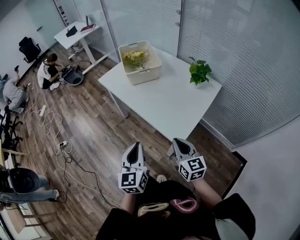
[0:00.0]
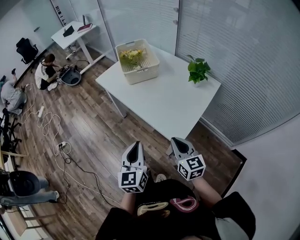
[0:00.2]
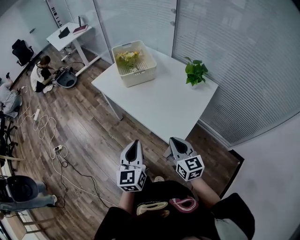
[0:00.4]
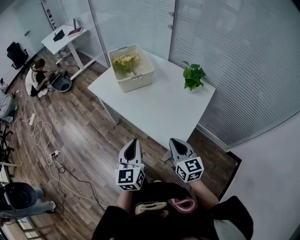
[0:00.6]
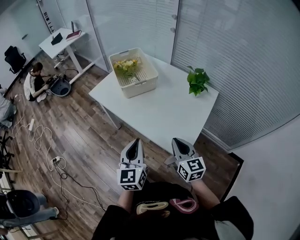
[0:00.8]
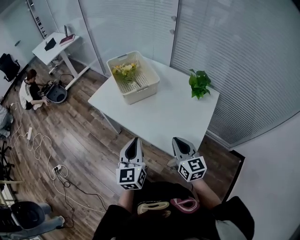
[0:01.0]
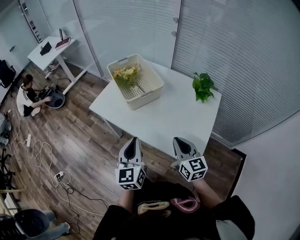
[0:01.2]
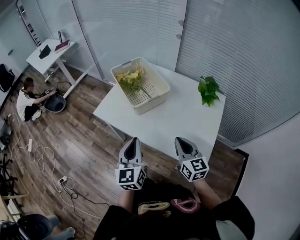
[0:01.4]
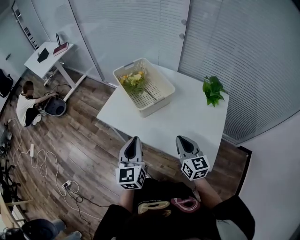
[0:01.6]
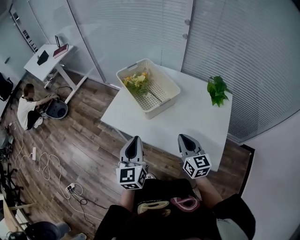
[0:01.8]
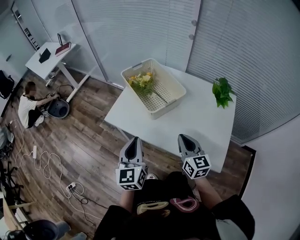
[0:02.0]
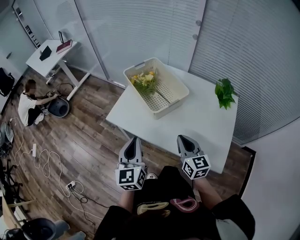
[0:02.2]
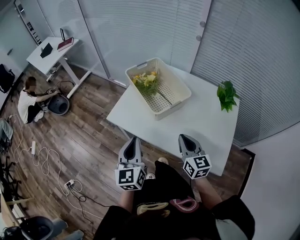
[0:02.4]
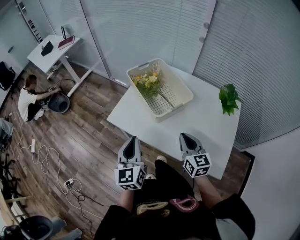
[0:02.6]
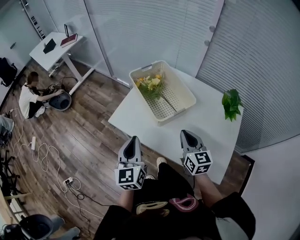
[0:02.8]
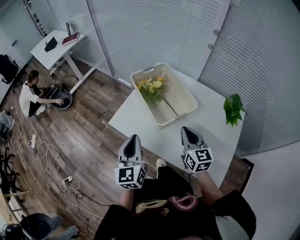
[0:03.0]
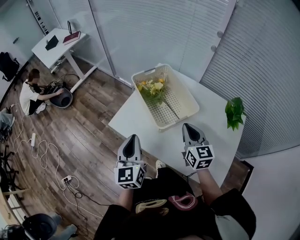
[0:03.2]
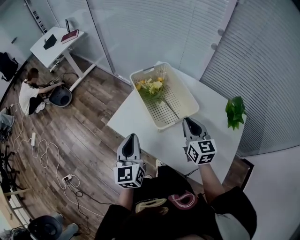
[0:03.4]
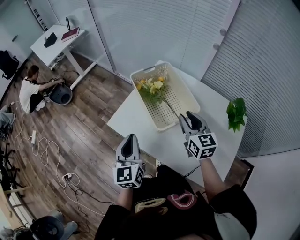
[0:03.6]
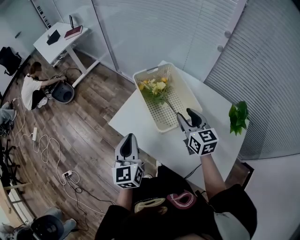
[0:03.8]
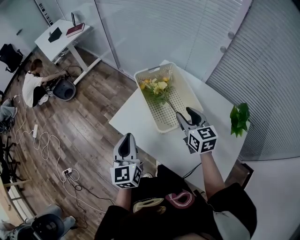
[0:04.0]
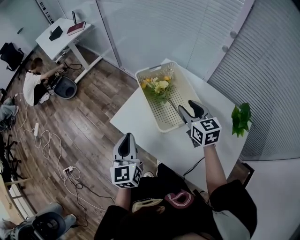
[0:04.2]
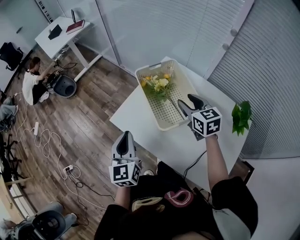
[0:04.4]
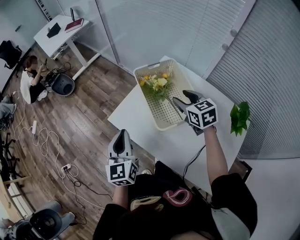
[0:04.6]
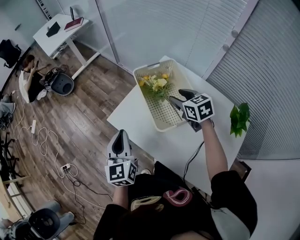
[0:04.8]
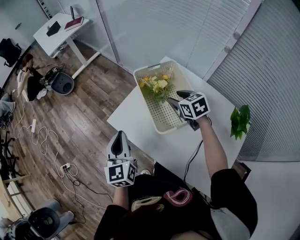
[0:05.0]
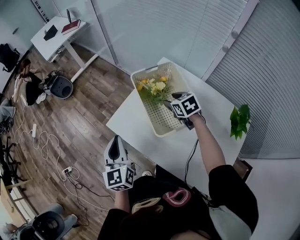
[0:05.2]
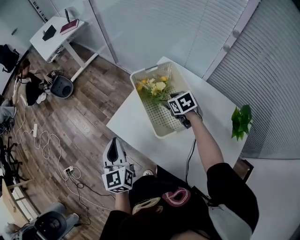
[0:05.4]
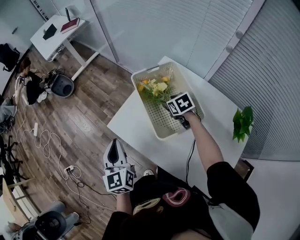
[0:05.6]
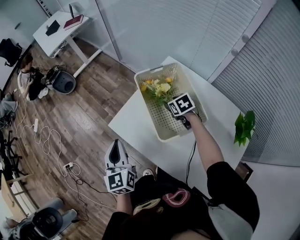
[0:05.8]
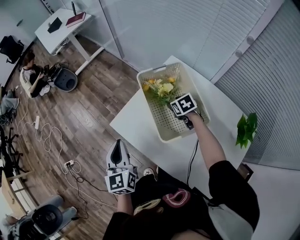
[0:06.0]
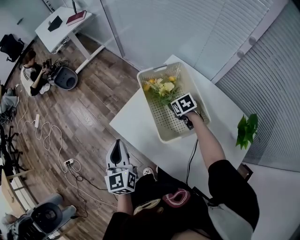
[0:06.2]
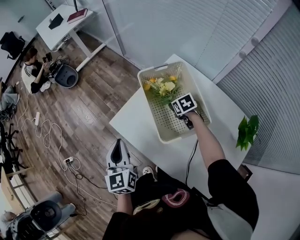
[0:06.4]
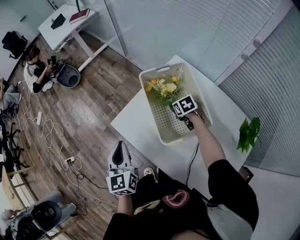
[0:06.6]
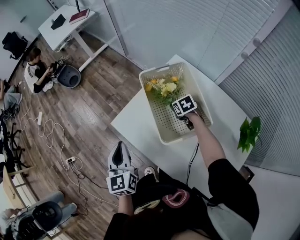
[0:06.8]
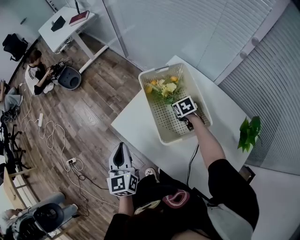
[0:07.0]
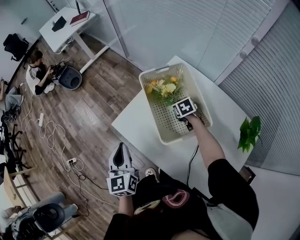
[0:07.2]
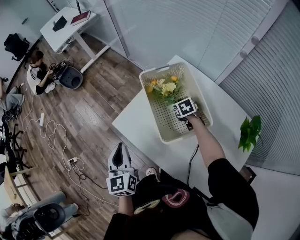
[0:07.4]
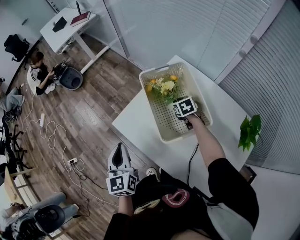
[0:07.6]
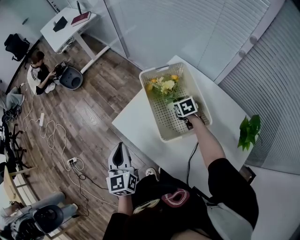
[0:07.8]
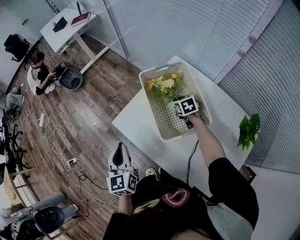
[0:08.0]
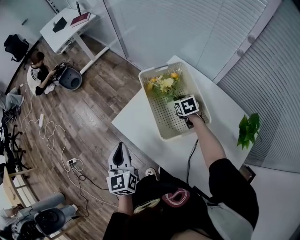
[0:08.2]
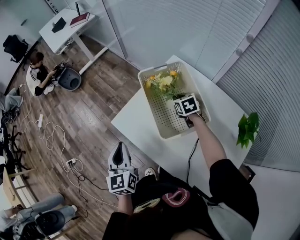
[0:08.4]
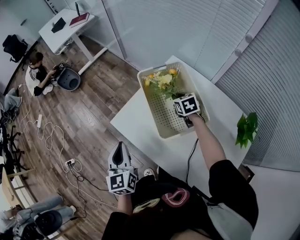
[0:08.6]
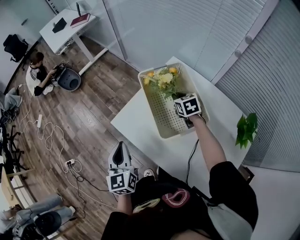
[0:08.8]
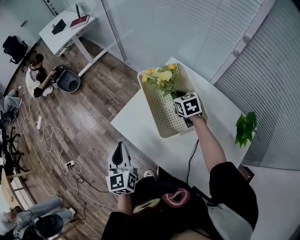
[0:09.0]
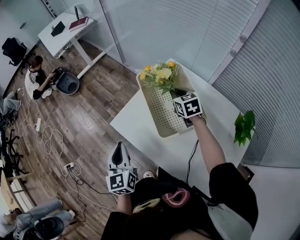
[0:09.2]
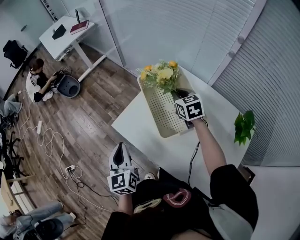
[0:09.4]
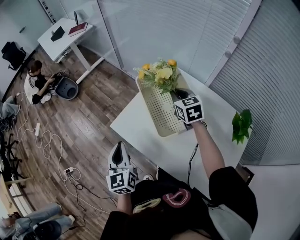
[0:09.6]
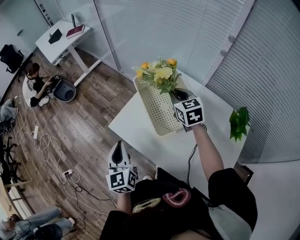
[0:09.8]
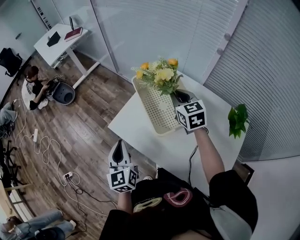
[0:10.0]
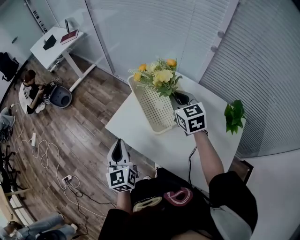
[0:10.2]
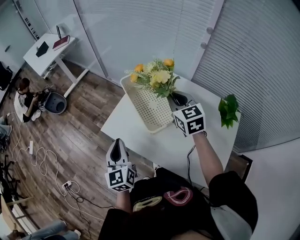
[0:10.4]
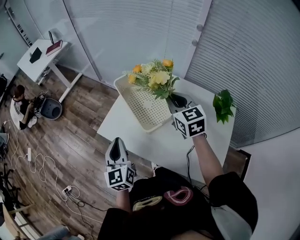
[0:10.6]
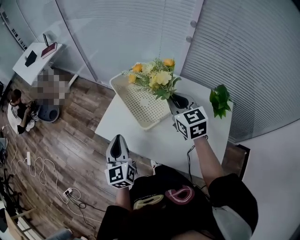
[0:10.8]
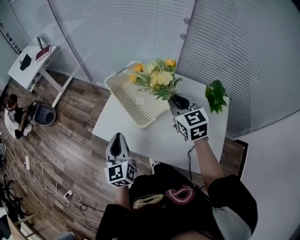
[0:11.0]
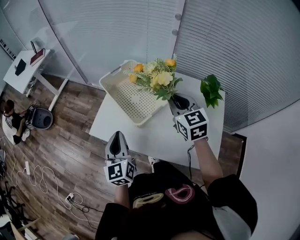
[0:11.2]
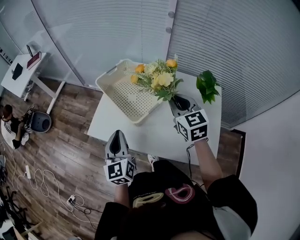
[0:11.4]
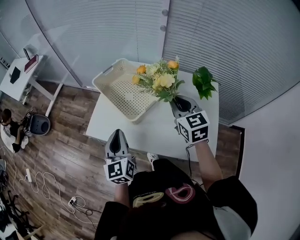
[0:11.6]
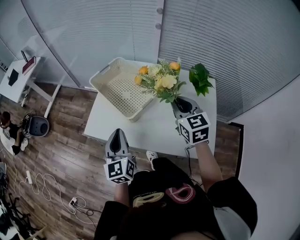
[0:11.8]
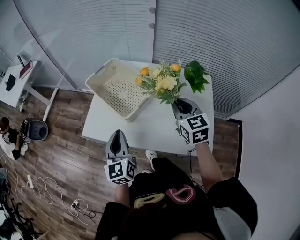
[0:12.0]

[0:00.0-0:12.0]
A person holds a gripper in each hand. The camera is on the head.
0:00.0 to 0:01.6: The grippers both shift forward and to the left by roughly 30 cm.
0:01.6 to 0:03.0: The right gripper goes approximately 15 cm forward. The left gripper goes roughly 15 cm forward and to the left.
0:03.0 to 0:04.4: The left gripper changes place by about 5 cm, while the right gripper is displaced forward by roughly 15 cm, and opens up.
0:04.4 to 0:06.0: The right gripper is displaced downward and forward by about 20 cm, and tips its fingers downward by approximately 30 degrees.
0:06.0 to 0:07.6: The right gripper closes its fingers.
0:07.6 to 0:09.0: The right gripper is displaced upward by some 10 cm.
0:09.0 to 0:10.4: The right gripper travels upward and backward by about 20 cm, and rotates some 20 degrees.
0:10.4 to 0:12.0: The right gripper shifts about 20 cm backward and to the right, and rotates some 20 degrees. Meanwhile the left gripper travels to the right by approximately 10 cm, and rotates about 20 degrees.

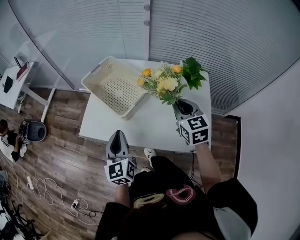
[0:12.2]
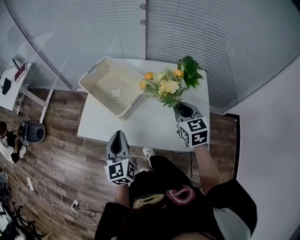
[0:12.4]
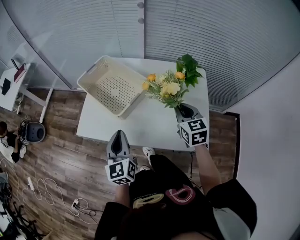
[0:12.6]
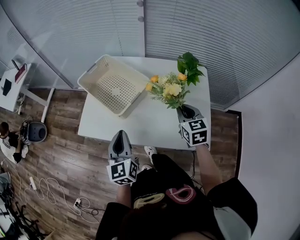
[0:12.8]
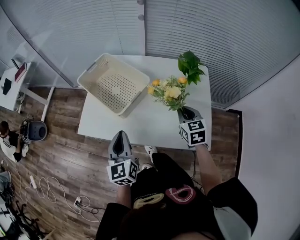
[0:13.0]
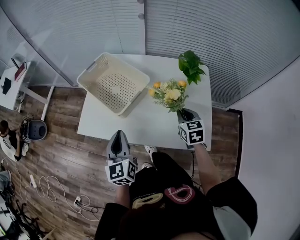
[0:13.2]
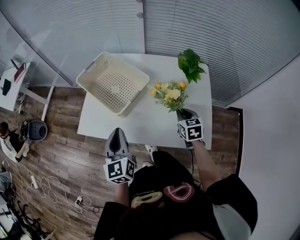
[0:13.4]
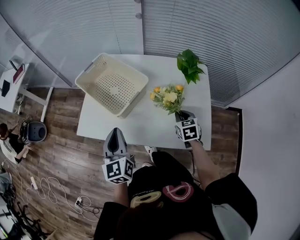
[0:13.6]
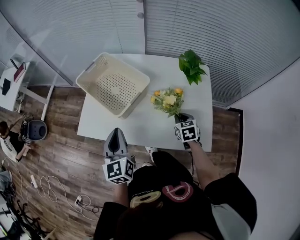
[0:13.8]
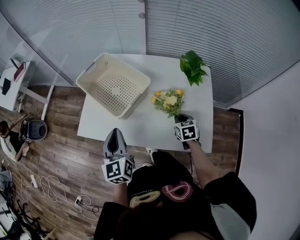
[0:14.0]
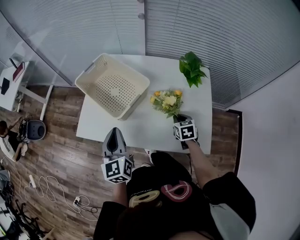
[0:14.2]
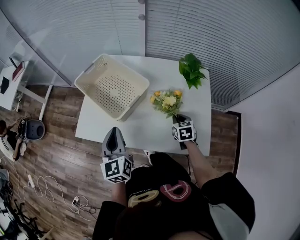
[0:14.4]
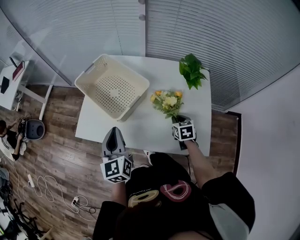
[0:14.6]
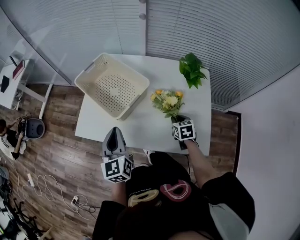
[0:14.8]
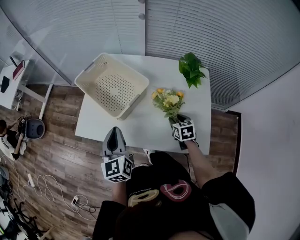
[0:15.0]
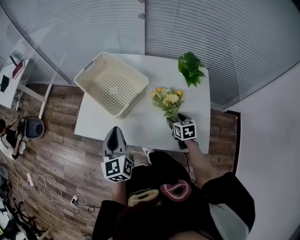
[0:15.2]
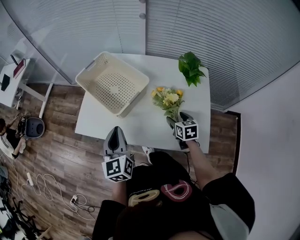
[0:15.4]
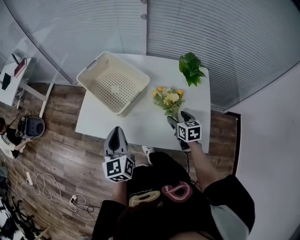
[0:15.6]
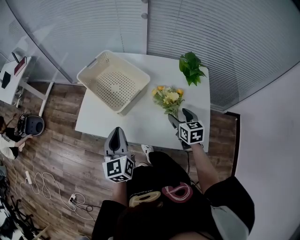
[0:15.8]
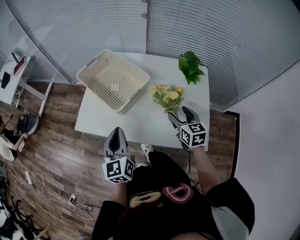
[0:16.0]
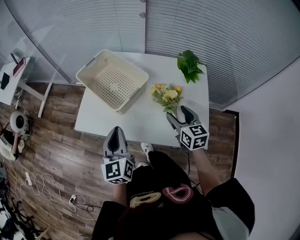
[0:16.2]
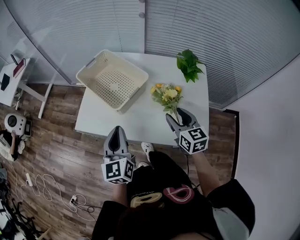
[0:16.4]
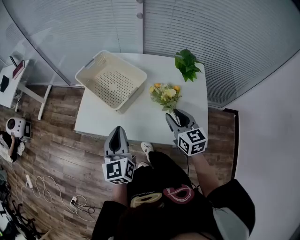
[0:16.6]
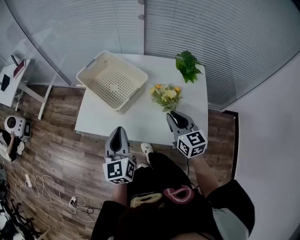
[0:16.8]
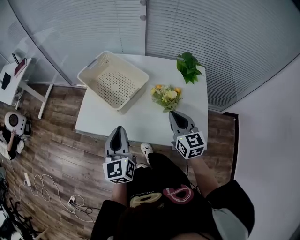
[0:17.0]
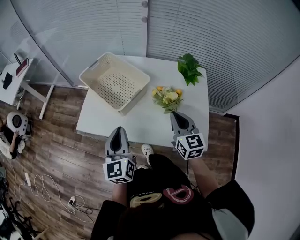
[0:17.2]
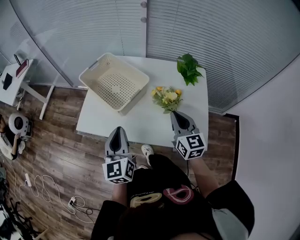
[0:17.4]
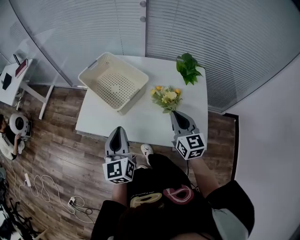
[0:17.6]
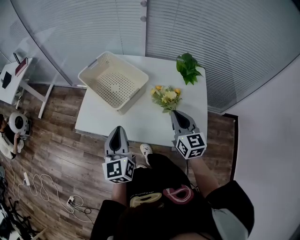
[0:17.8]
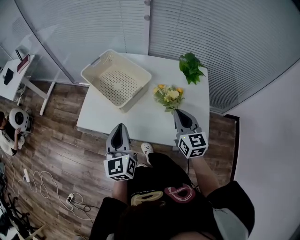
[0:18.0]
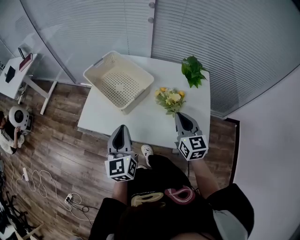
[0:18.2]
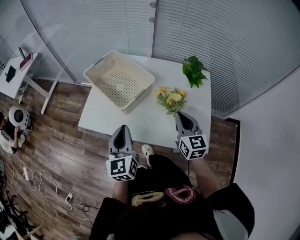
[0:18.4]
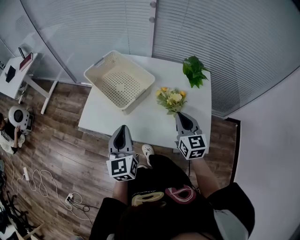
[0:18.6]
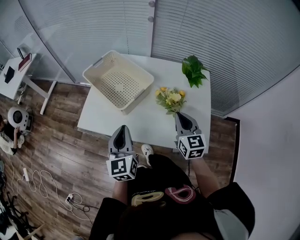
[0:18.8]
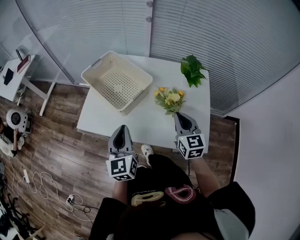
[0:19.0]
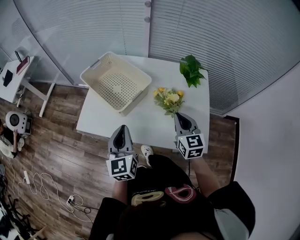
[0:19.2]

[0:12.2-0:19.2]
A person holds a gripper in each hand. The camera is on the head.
0:12.2 to 0:13.6: The right gripper moves downward, some 20 cm, and changes its angle by approximately 20 degrees.
0:13.6 to 0:15.0: The right gripper heads downward, covering some 5 cm, and opens up.
0:15.0 to 0:16.4: The left gripper ends up some 5 cm from where it was. The right gripper heads upward, covering some 15 cm, and turns by about 30 degrees.
0:16.4 to 0:17.8: The right gripper closes up.
0:17.8 to 0:19.2: There are only small adjustments of the grippers.

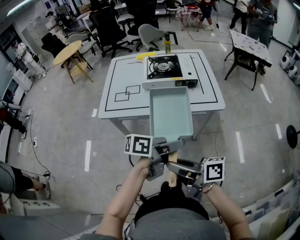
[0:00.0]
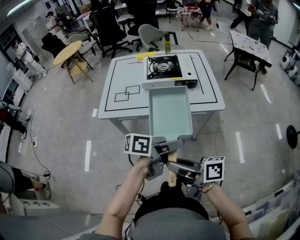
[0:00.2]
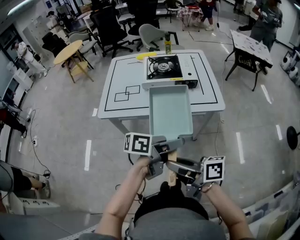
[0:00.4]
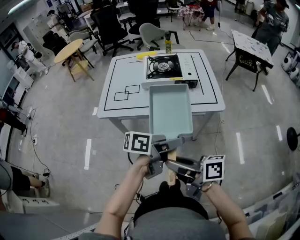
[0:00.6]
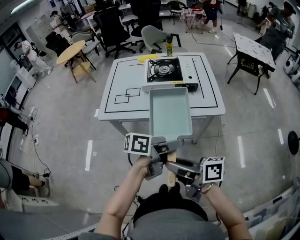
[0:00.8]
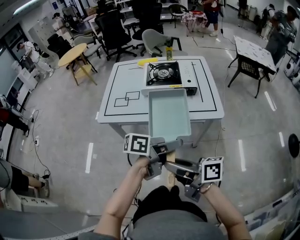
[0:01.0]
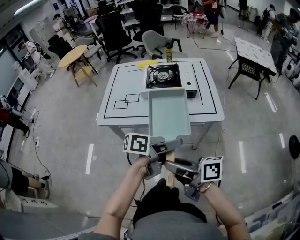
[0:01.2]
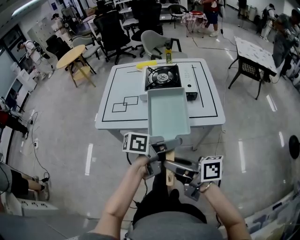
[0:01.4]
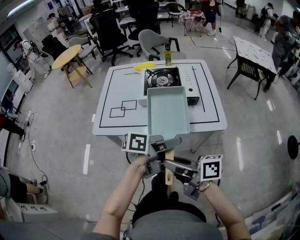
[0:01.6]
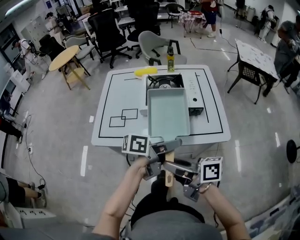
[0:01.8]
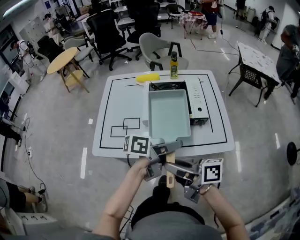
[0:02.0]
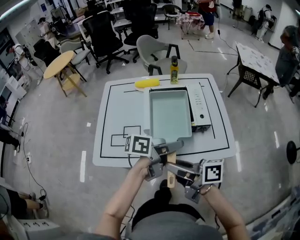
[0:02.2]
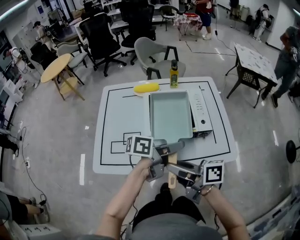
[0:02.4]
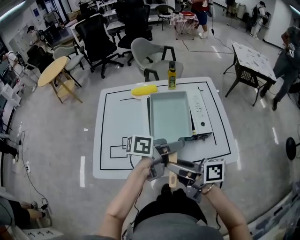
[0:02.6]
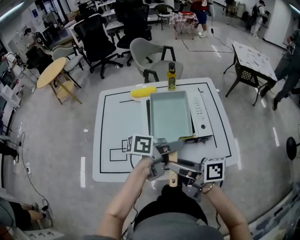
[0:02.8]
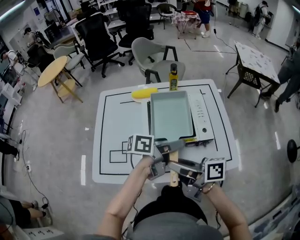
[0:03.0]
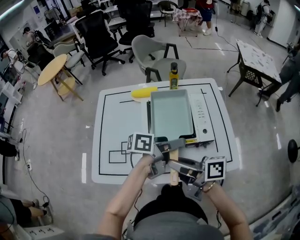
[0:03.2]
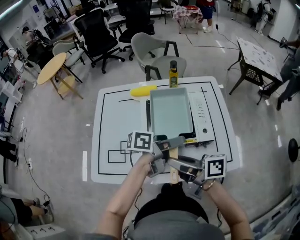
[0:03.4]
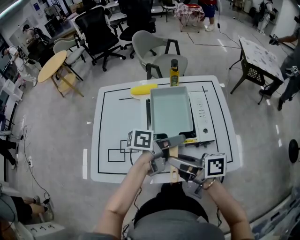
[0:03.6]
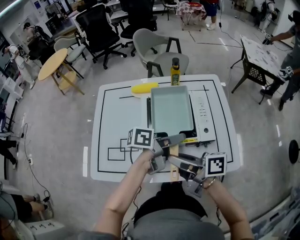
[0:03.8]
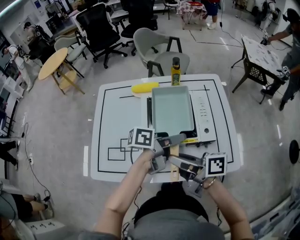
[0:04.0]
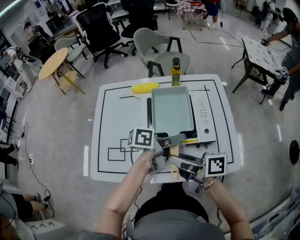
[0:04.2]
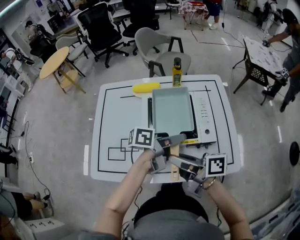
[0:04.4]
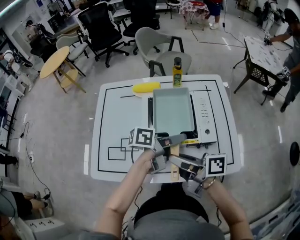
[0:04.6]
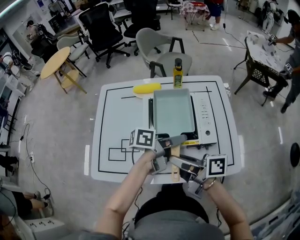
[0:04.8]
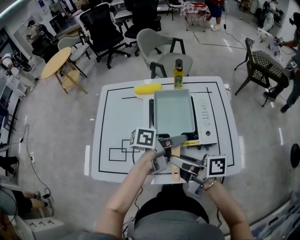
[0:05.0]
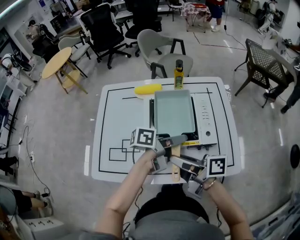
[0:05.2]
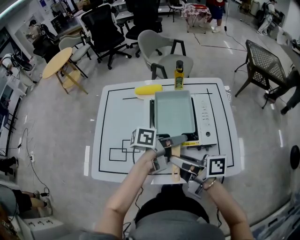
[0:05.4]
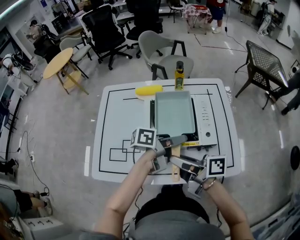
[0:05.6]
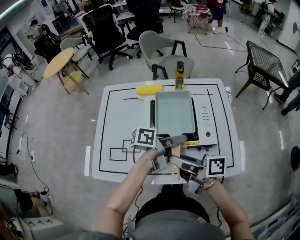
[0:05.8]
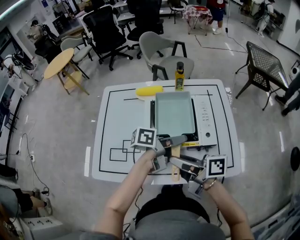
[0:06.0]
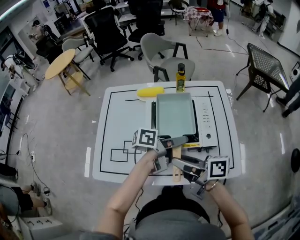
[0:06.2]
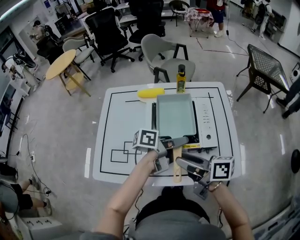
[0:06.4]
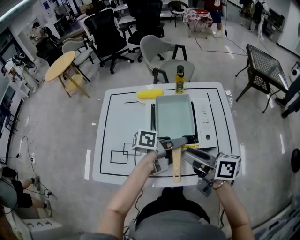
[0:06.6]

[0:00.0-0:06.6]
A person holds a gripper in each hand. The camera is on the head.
0:00.0 to 0:01.6: The right gripper changes place by some 10 cm, while the left gripper shifts by some 10 cm.
0:01.6 to 0:03.2: The left gripper changes place by roughly 25 cm; the right gripper changes place by about 25 cm.
0:03.2 to 0:05.0: The grippers make only small movements.
0:05.0 to 0:06.6: The right gripper shifts by some 5 cm.
